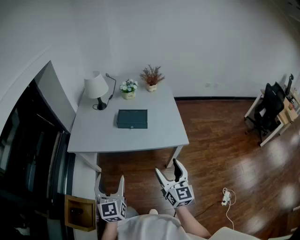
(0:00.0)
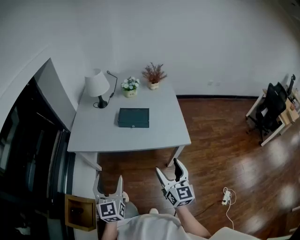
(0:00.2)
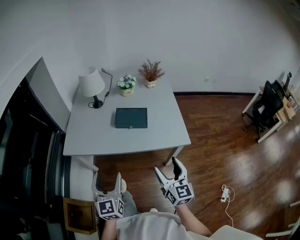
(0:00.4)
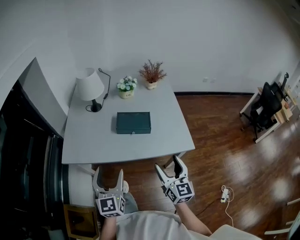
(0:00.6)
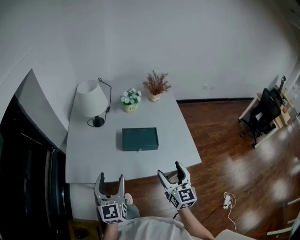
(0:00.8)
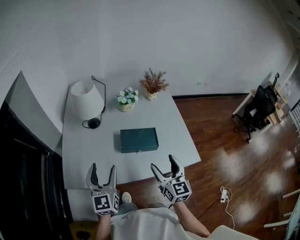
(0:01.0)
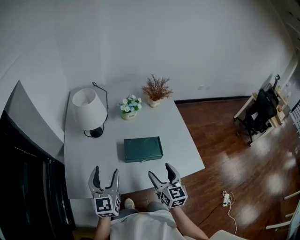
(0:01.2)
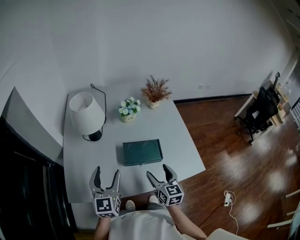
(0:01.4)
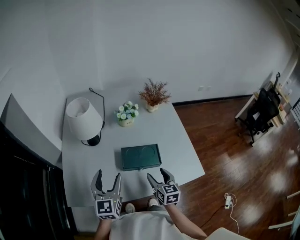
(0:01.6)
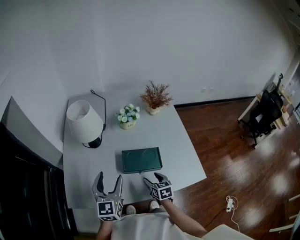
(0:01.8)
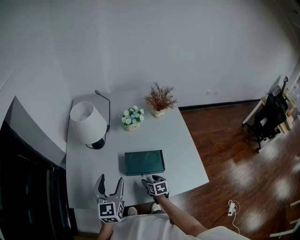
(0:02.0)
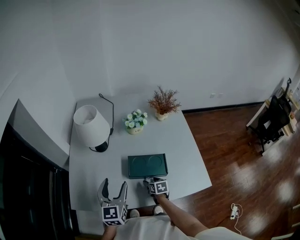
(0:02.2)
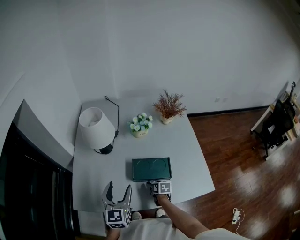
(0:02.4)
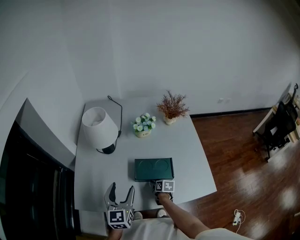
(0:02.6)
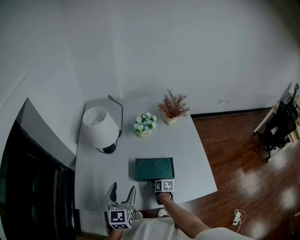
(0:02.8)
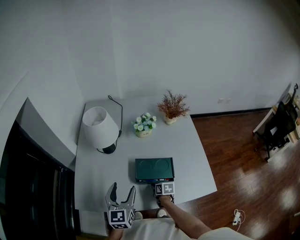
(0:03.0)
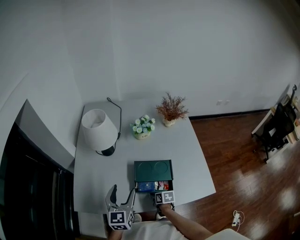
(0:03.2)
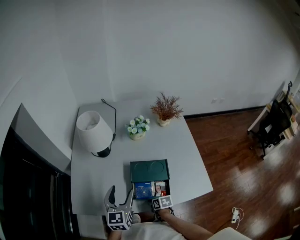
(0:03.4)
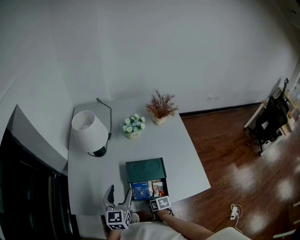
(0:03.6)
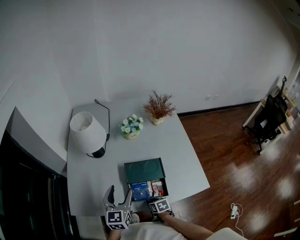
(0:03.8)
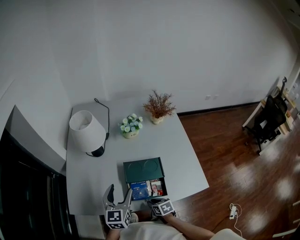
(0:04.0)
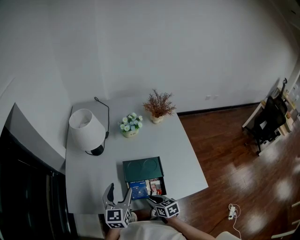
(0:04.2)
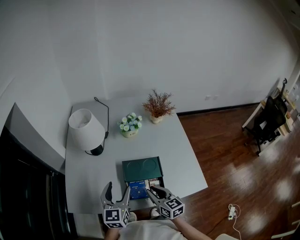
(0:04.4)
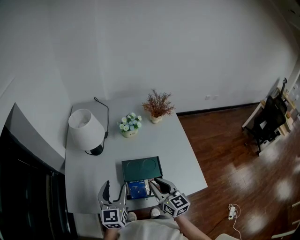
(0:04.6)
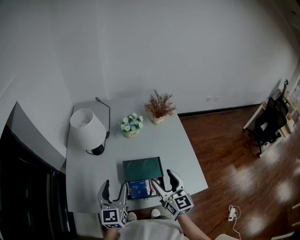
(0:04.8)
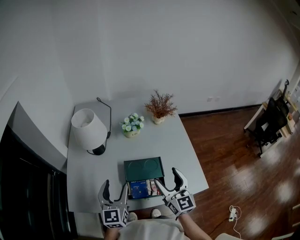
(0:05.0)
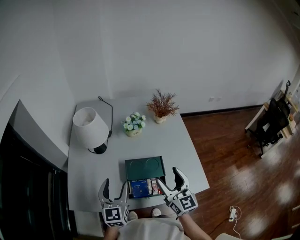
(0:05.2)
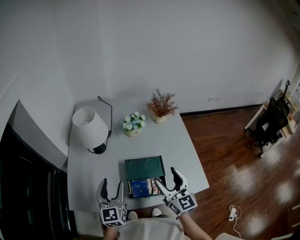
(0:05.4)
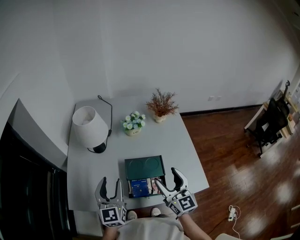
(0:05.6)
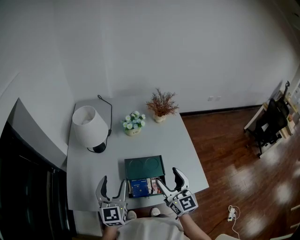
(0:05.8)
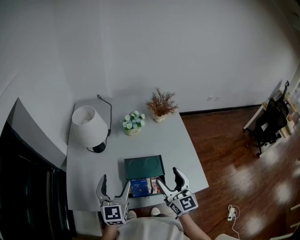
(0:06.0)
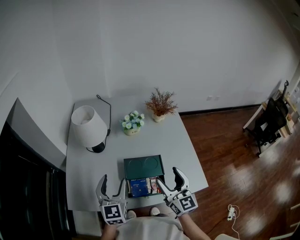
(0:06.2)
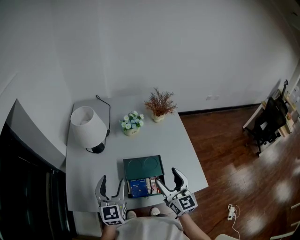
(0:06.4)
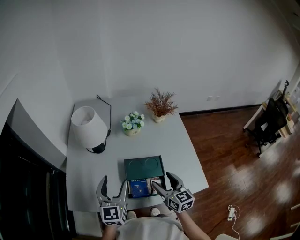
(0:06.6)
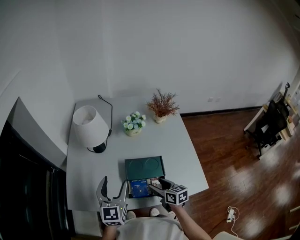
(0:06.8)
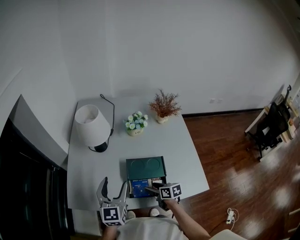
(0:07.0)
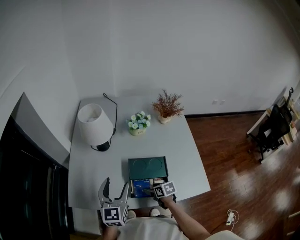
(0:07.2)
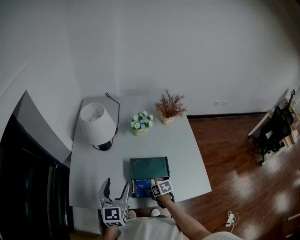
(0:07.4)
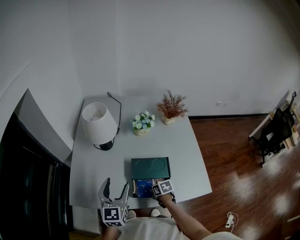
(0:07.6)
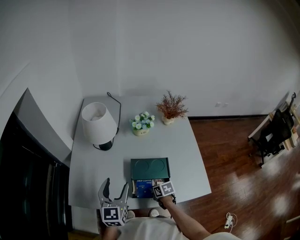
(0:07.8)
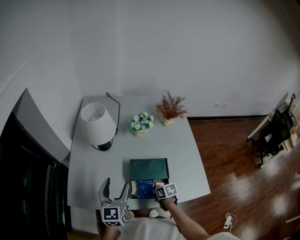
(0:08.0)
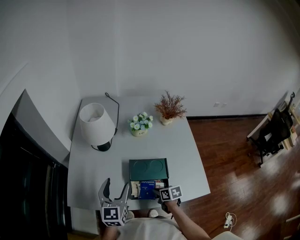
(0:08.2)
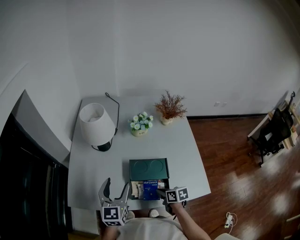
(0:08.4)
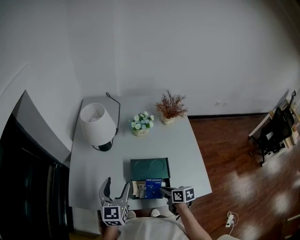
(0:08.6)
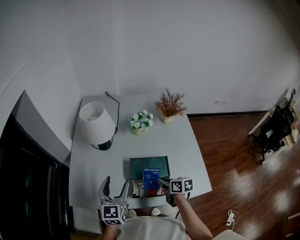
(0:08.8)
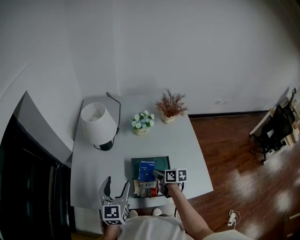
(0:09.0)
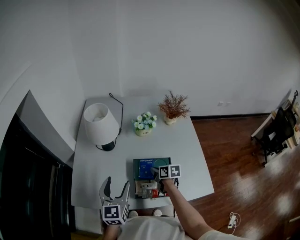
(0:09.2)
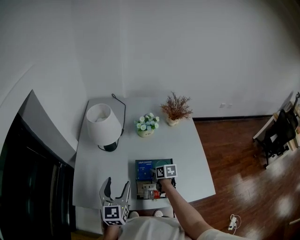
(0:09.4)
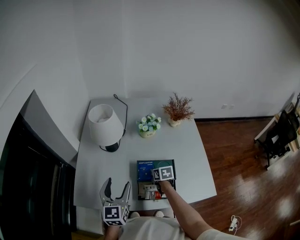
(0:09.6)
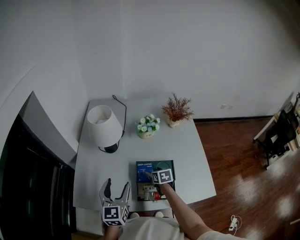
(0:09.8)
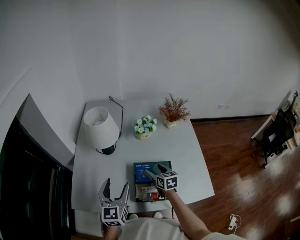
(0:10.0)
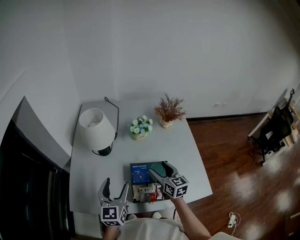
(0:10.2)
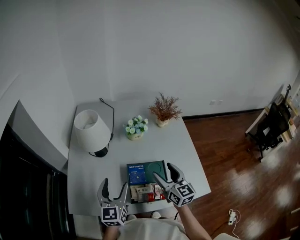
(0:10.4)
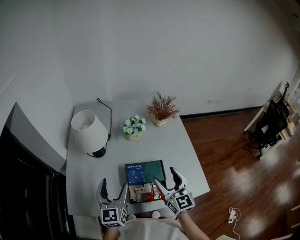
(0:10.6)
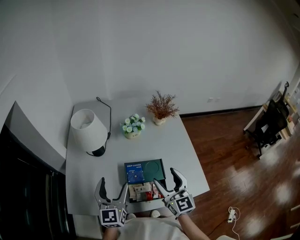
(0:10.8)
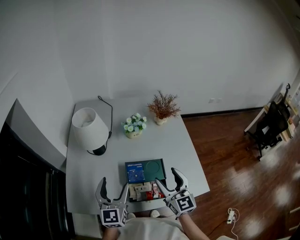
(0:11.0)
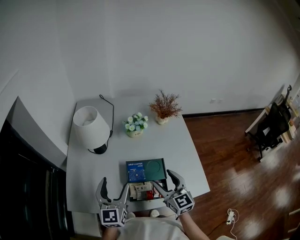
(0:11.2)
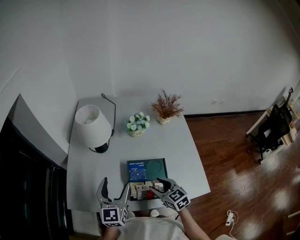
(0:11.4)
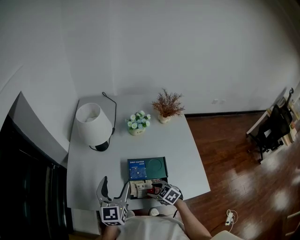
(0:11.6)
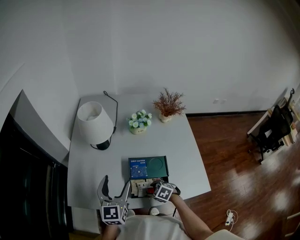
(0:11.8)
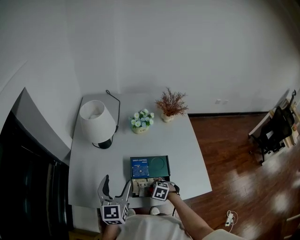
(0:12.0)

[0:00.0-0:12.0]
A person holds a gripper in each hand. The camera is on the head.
0:00.0 to 0:01.6: Both grippers move forward, some 40 cm. The right gripper rotates some 30 degrees.
0:01.6 to 0:03.0: The right gripper goes roughly 20 cm downward, changes its angle by roughly 40 degrees, and closes its fingers.
0:03.0 to 0:04.4: The right gripper travels upward by some 20 cm, and tilts its fingers about 30 degrees upward.
0:04.4 to 0:06.0: The right gripper is displaced upward and to the right by some 15 cm, rotates some 30 degrees, and opens its fingers; the left gripper changes place by approximately 5 cm.
0:06.0 to 0:07.6: The right gripper is displaced downward by roughly 30 cm, tips its fingers downward by about 60 degrees, and closes.
0:07.6 to 0:09.0: The right gripper moves upward and forward, some 15 cm, rotates roughly 30 degrees, and closes.
0:09.0 to 0:10.4: The right gripper moves upward, about 15 cm, swivels approximately 50 degrees, and opens up.
0:10.4 to 0:12.0: The right gripper goes approximately 30 cm downward, tilts its fingers some 70 degrees downward, and closes up.

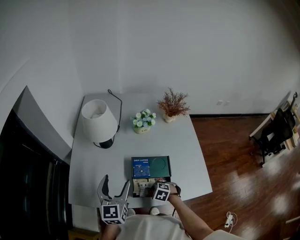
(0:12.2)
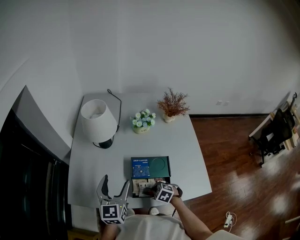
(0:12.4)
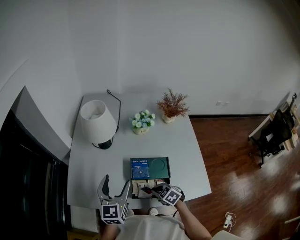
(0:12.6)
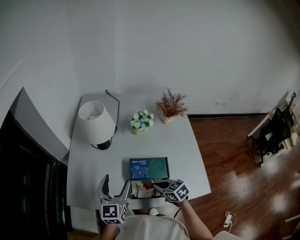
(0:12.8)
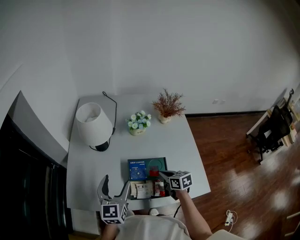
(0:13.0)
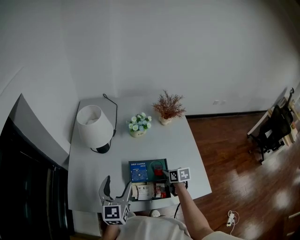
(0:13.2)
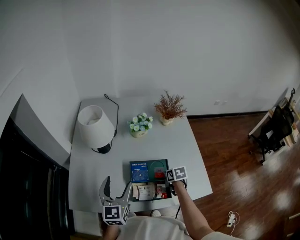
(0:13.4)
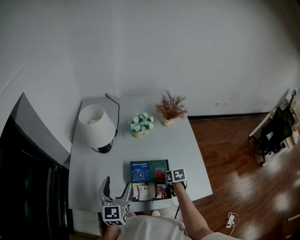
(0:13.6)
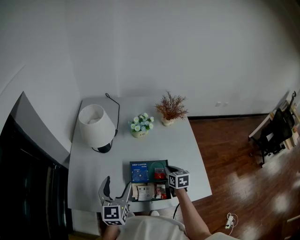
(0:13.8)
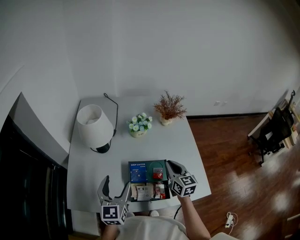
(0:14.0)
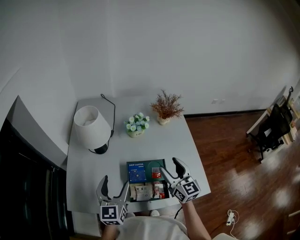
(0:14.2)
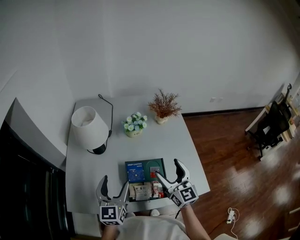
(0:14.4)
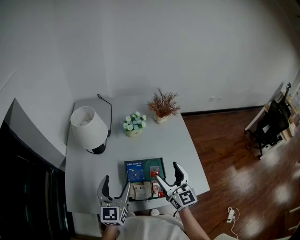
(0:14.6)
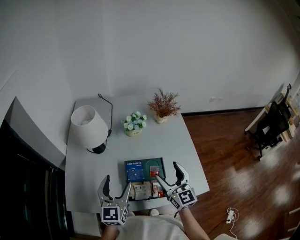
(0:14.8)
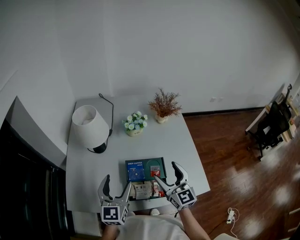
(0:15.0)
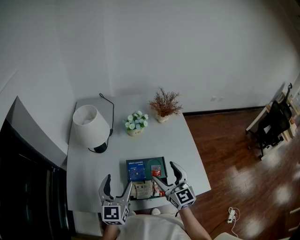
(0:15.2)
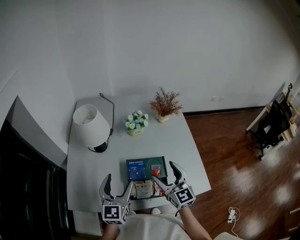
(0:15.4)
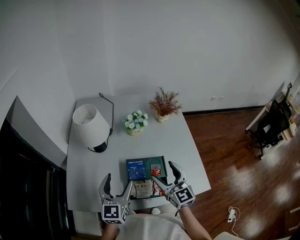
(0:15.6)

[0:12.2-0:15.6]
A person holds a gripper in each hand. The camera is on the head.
0:12.2 to 0:13.8: The right gripper heads to the right, upward and forward, covering some 20 cm, and twists about 60 degrees clockwise, seen from behind.
0:13.8 to 0:15.6: The right gripper shifts about 20 cm upward and backward, tilts its fingers some 40 degrees upward, and opens.

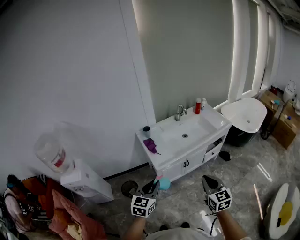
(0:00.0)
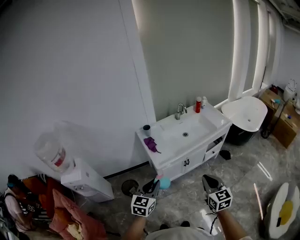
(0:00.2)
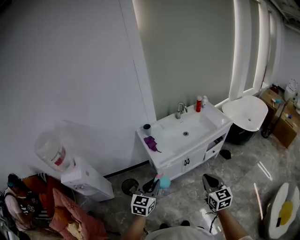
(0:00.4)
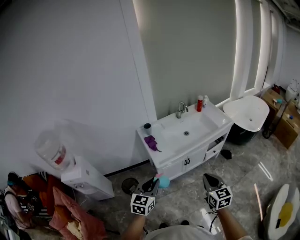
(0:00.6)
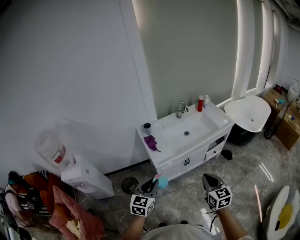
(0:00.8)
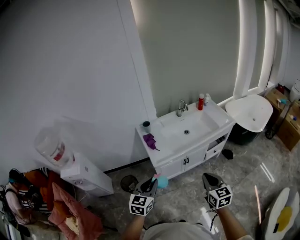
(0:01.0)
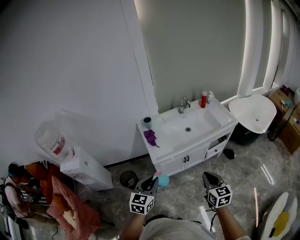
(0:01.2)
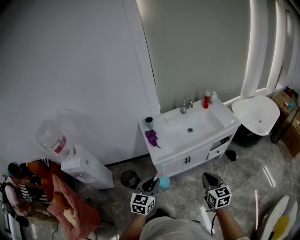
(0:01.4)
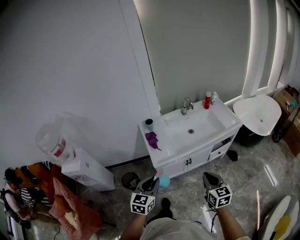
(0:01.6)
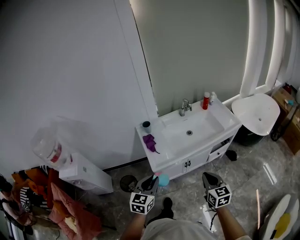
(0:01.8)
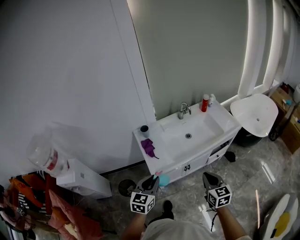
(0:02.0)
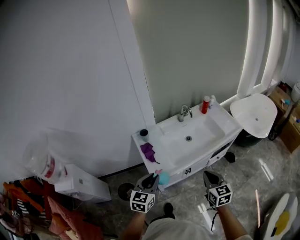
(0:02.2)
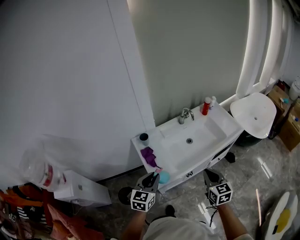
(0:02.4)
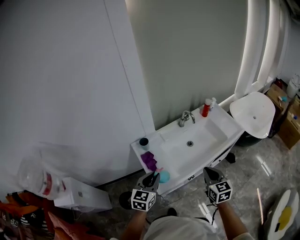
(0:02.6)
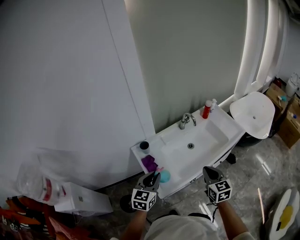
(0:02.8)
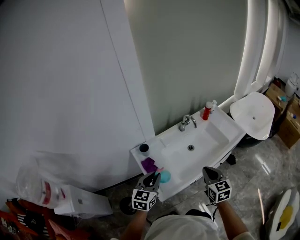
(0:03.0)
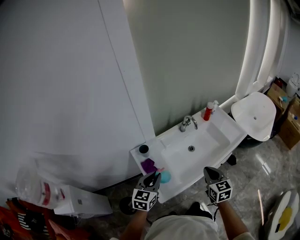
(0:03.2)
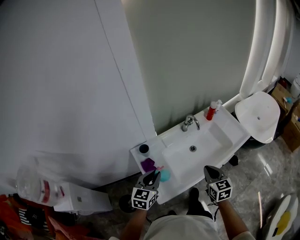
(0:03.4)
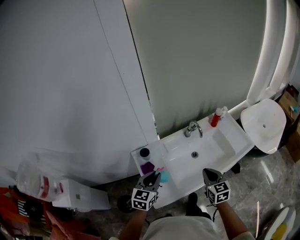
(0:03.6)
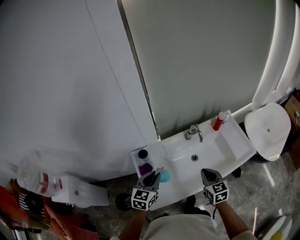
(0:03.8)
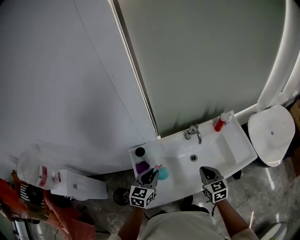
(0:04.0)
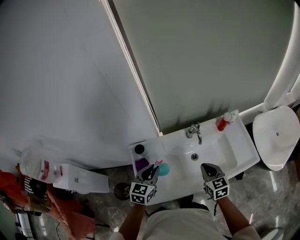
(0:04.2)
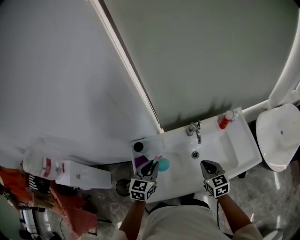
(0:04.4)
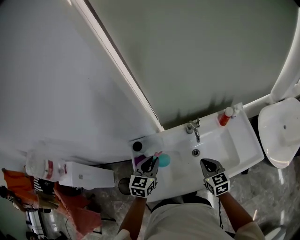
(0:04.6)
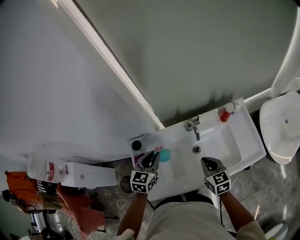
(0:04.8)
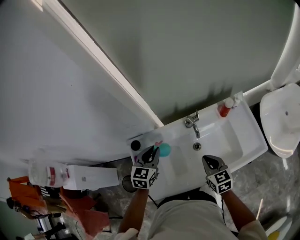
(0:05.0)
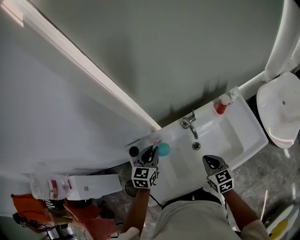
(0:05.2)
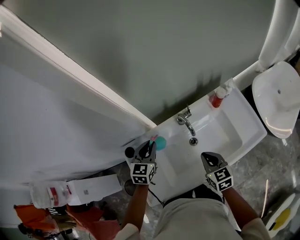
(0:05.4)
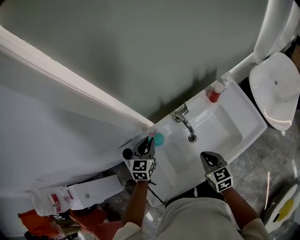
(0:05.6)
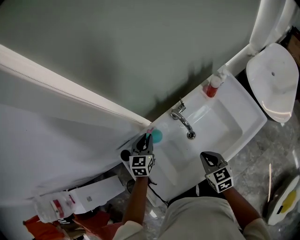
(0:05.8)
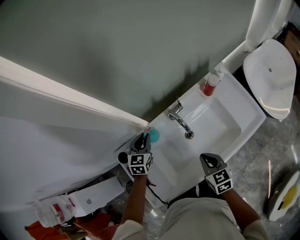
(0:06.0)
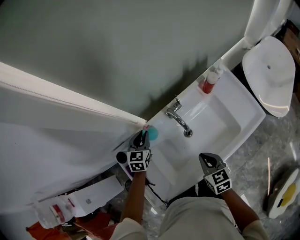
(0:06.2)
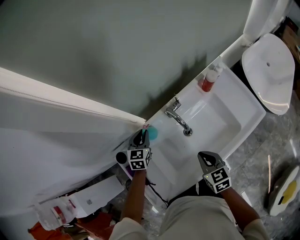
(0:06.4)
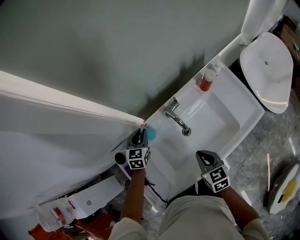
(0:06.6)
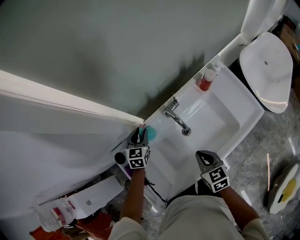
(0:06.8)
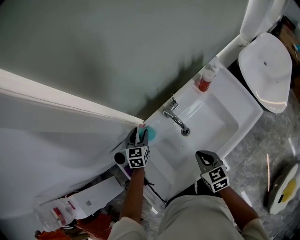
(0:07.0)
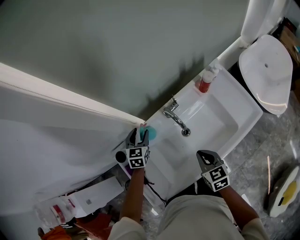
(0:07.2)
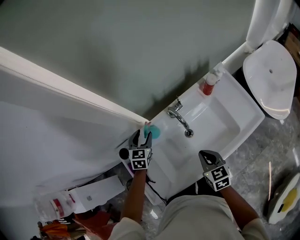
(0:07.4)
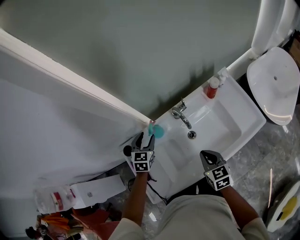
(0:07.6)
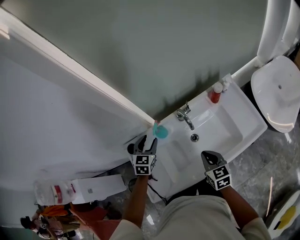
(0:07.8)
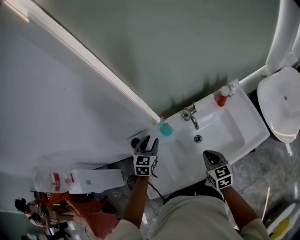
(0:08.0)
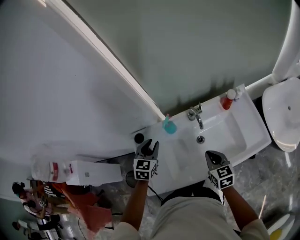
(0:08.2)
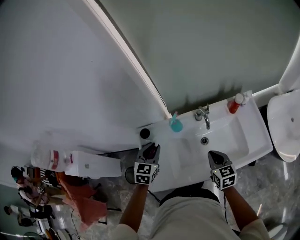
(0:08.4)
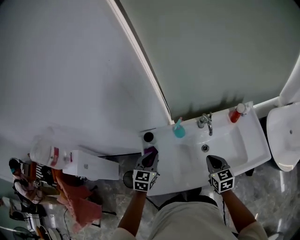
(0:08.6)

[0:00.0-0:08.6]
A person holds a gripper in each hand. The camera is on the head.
0:00.0 to 0:01.4: The right gripper travels forward, to the right and downward by roughly 10 cm, while the left gripper goes roughly 5 cm to the right.
0:01.4 to 0:02.8: Both grippers travel together forward, about 30 cm.
0:02.8 to 0:04.4: The left gripper travels forward and to the right by some 25 cm, and turns by approximately 20 degrees, while the right gripper travels forward by roughly 25 cm, and changes its angle by roughly 20 degrees.
0:04.4 to 0:05.8: The left gripper shifts approximately 20 cm forward and downward. Meanwhile the right gripper shifts about 10 cm downward.
0:05.8 to 0:07.2: The left gripper heads downward, covering some 5 cm, and opens its fingers.
0:07.2 to 0:08.6: The left gripper moves backward, upward and to the left, some 30 cm, and closes up. Meanwhile the right gripper goes some 5 cm upward.
